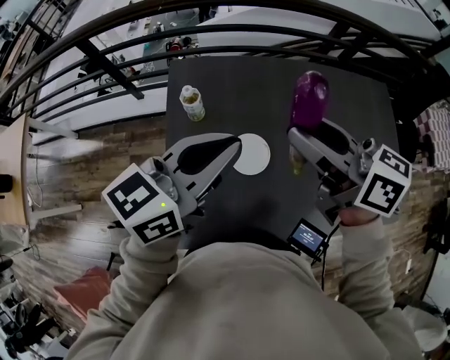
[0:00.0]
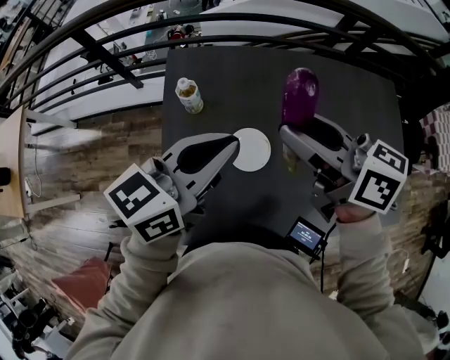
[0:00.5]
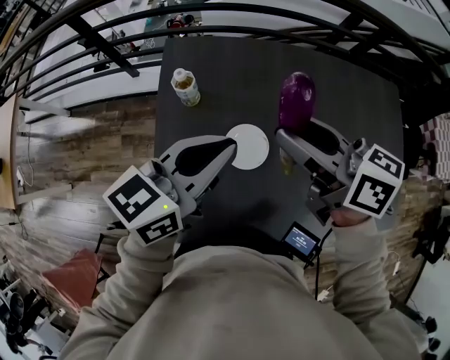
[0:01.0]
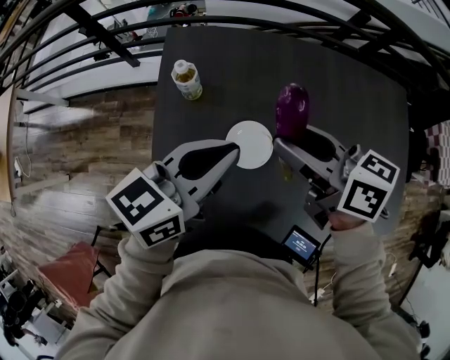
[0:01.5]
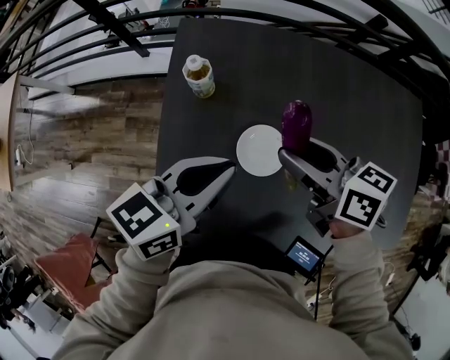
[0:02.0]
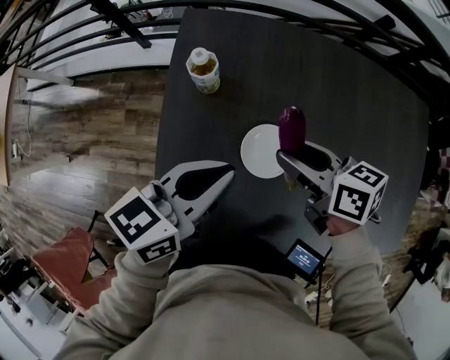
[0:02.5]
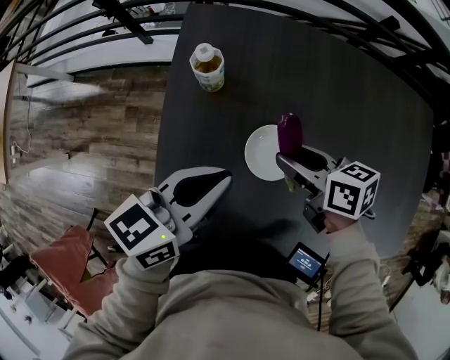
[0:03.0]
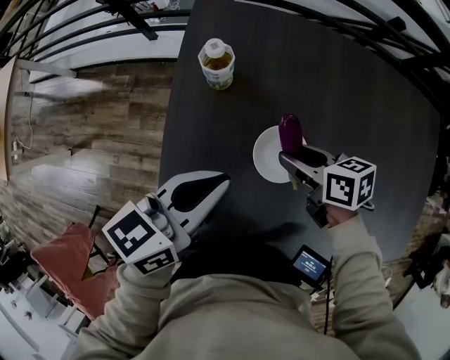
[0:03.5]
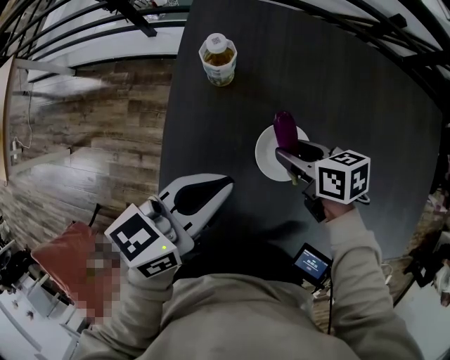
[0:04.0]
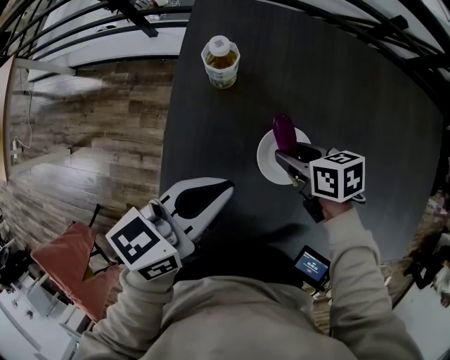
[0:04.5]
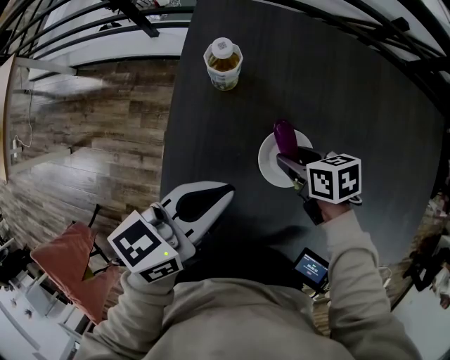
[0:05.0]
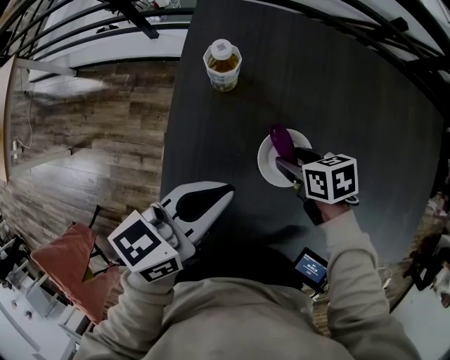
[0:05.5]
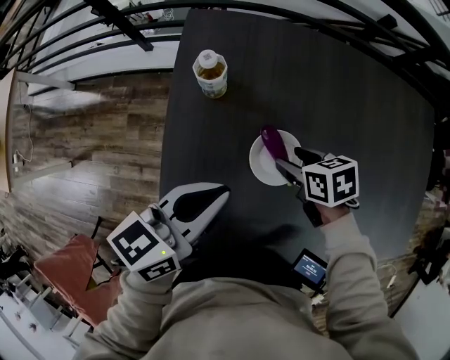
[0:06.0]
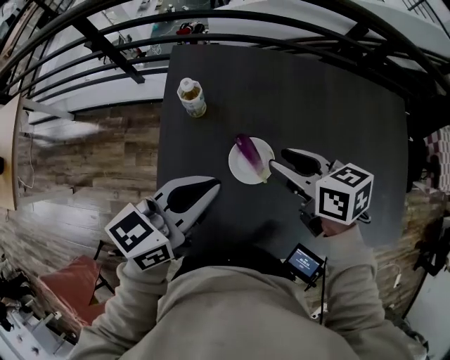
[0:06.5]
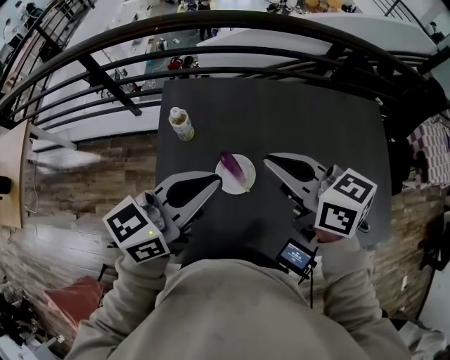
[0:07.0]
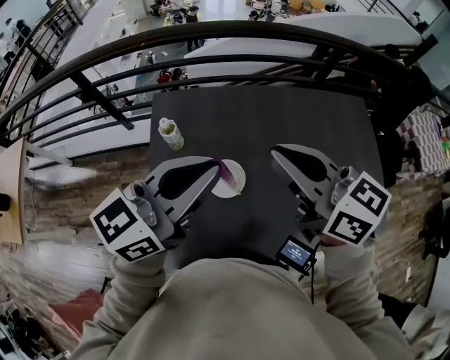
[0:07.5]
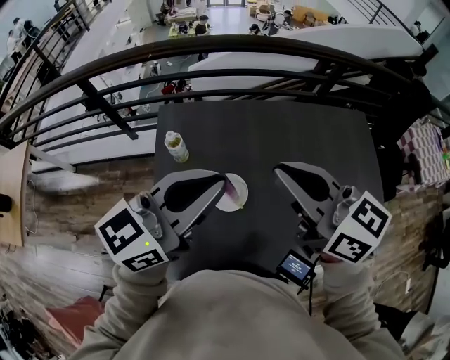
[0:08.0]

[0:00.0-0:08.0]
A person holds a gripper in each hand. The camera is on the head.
0:00.0 to 0:02.0: Both grippers move downward, approximately 20 cm.
0:02.0 to 0:04.0: The right gripper goes about 20 cm downward, and rotates roughly 20 degrees; the left gripper goes approximately 5 cm downward.
0:04.0 to 0:06.0: The grippers make only small movements.
0:06.0 to 0:08.0: The right gripper goes about 40 cm upward, tips its fingers upward by about 50 degrees, and closes; the left gripper moves upward, about 25 cm, and swivels about 30 degrees.

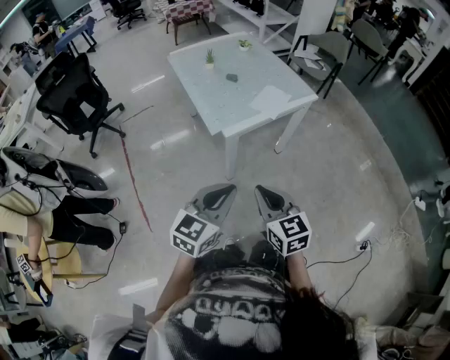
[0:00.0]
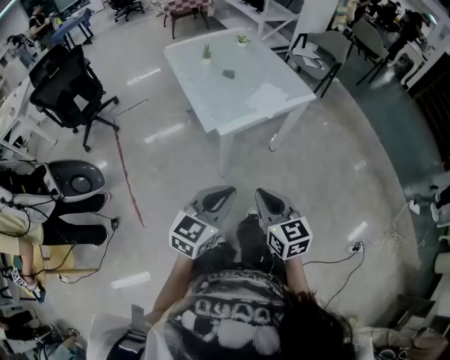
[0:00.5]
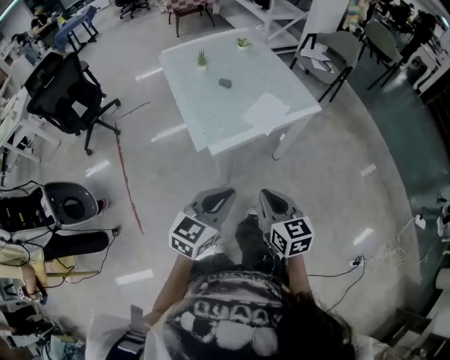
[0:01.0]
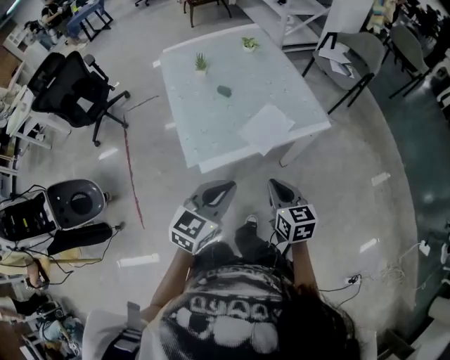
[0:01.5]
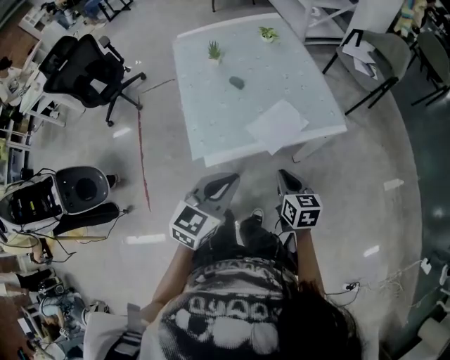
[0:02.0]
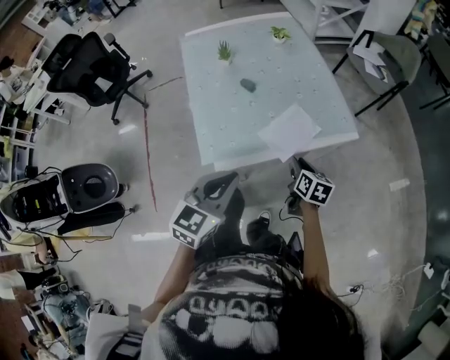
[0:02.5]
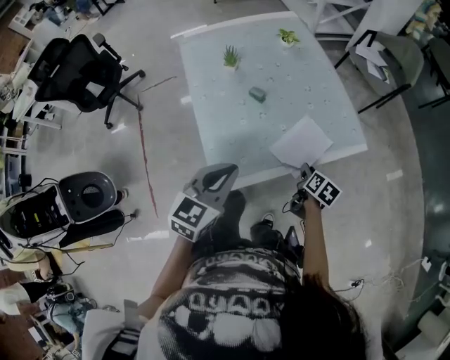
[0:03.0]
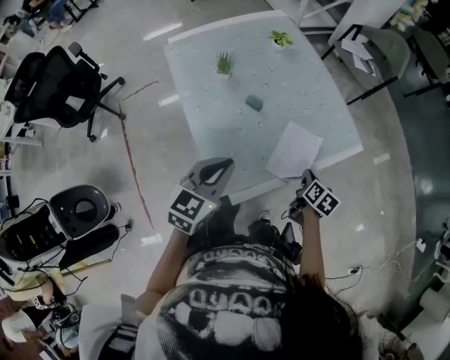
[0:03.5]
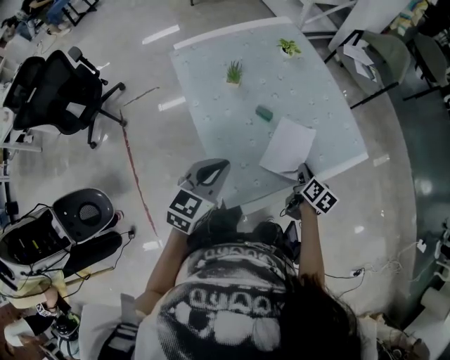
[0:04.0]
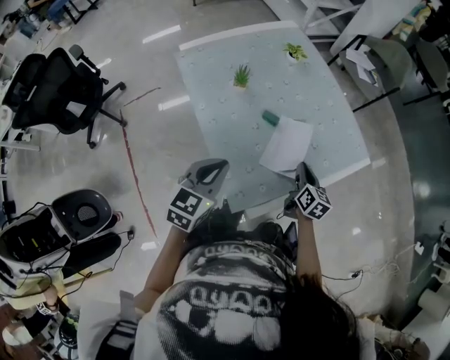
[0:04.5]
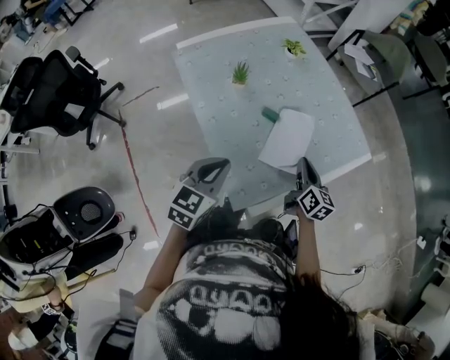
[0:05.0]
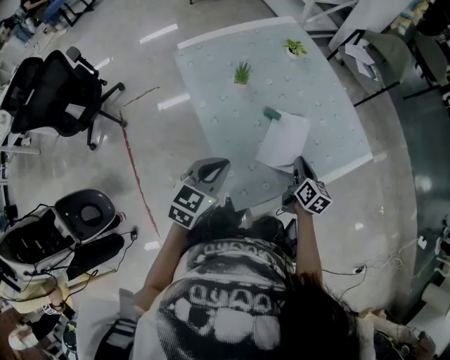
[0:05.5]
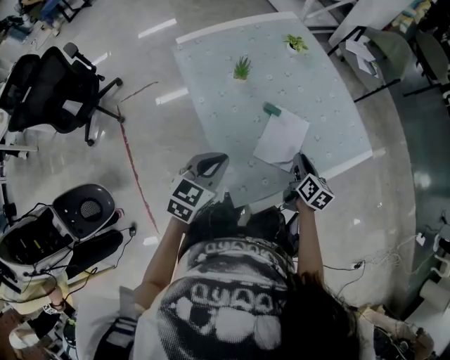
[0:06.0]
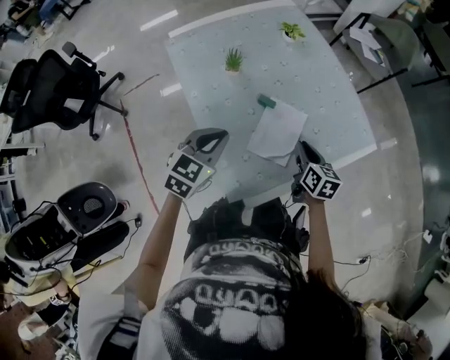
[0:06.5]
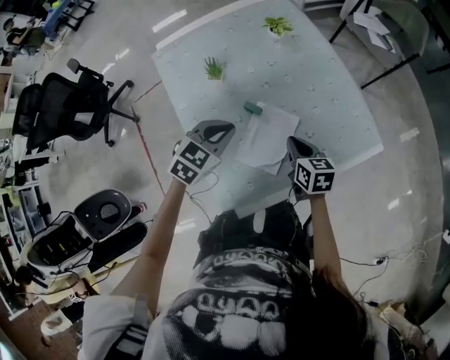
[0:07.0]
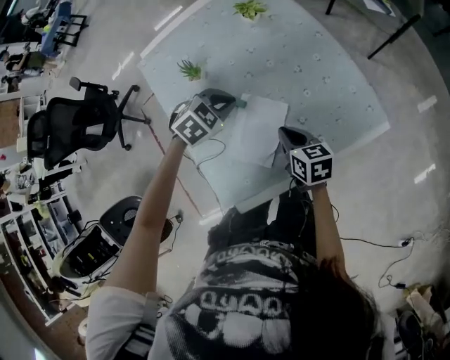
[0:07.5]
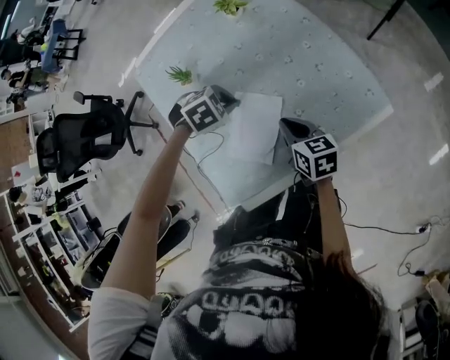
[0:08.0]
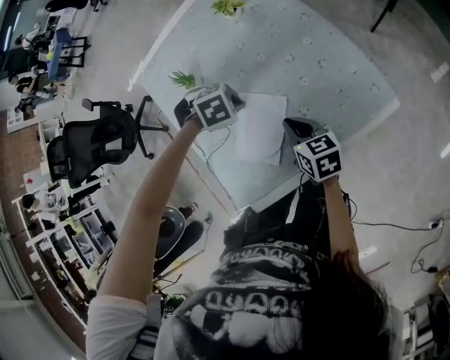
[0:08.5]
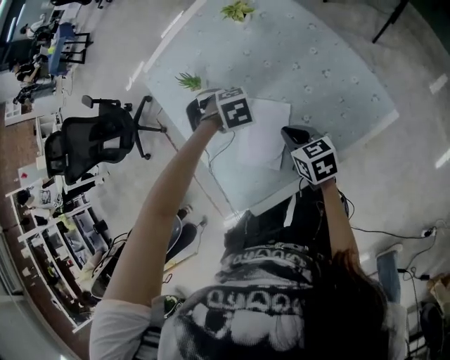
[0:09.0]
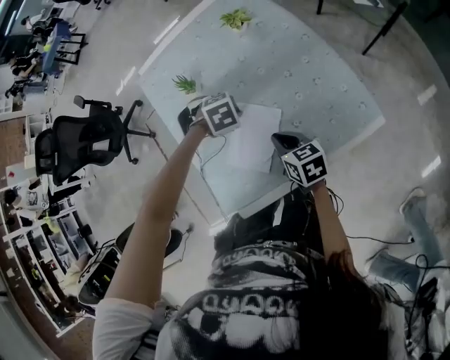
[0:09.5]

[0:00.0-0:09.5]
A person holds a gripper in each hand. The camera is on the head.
0:00.0 to 0:02.0: The left gripper is displaced forward by roughly 30 cm, while the right gripper moves forward, to the right and downward, approximately 40 cm.
0:02.0 to 0:04.0: The right gripper shifts roughly 20 cm forward, to the left and downward, swivels roughly 40 degrees, and opens, then closes again. The left gripper goes roughly 30 cm to the left and forward.
0:04.0 to 0:05.5: The right gripper is displaced to the left by about 5 cm.
0:05.5 to 0:07.5: The right gripper travels forward by approximately 5 cm, and rotates some 30 degrees; the left gripper goes approximately 25 cm forward, to the right and downward, and tips its fingers downward by approximately 40 degrees.
0:07.5 to 0:09.5: The left gripper changes place by roughly 5 cm, and changes its angle by about 30 degrees.

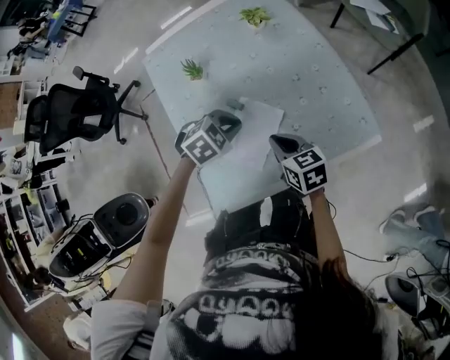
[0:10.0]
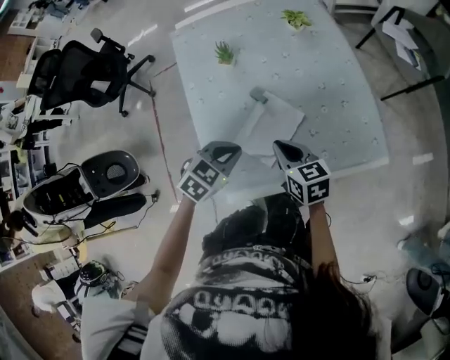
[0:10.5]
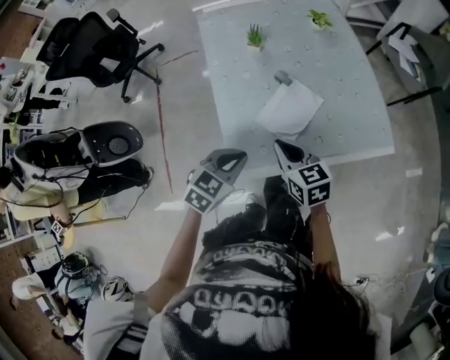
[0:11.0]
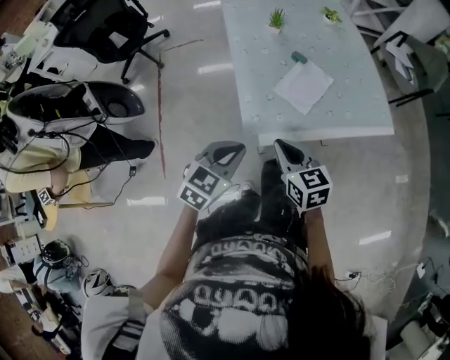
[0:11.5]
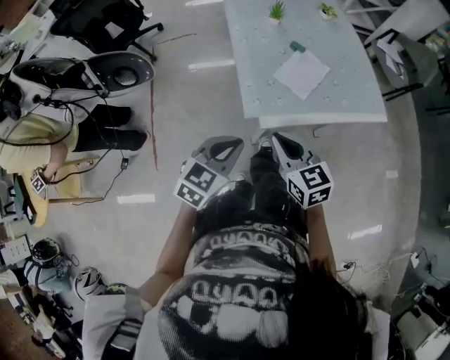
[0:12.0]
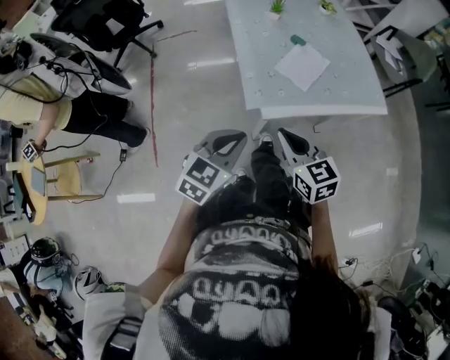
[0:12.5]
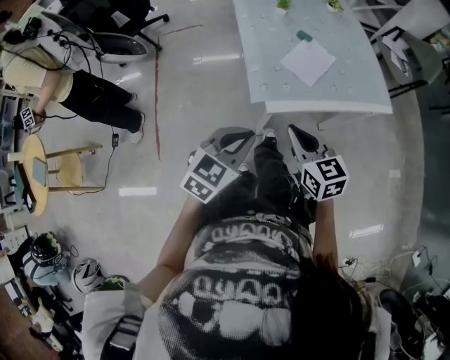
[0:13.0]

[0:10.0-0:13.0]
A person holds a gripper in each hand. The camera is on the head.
0:10.0 to 0:11.5: The grippers both shift backward and to the left by roughly 30 cm. The left gripper points its fingers about 30 degrees further upward.
0:11.5 to 0:13.0: The grippers both shift backward by some 10 cm.

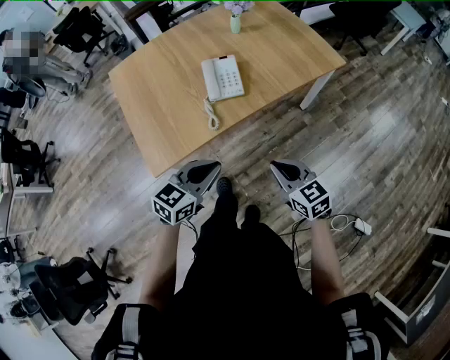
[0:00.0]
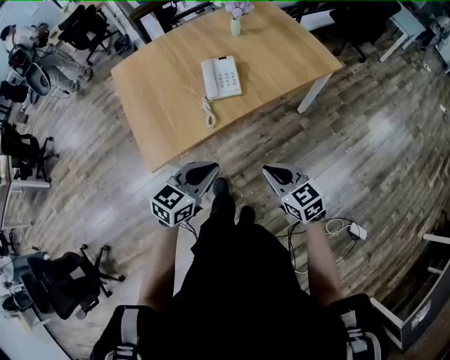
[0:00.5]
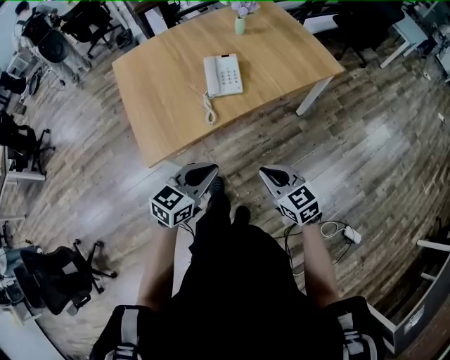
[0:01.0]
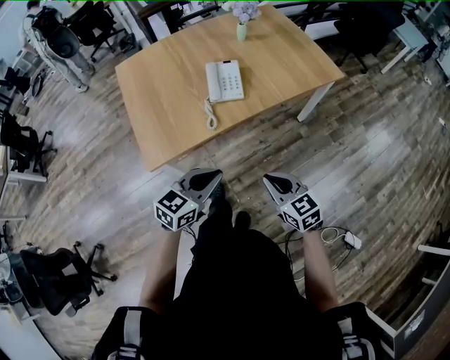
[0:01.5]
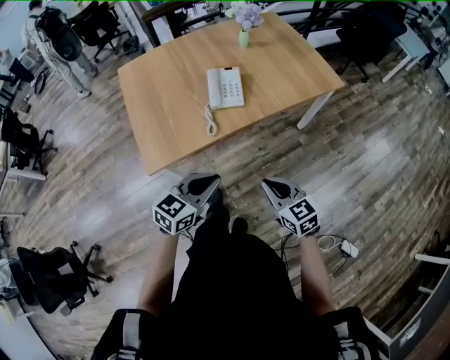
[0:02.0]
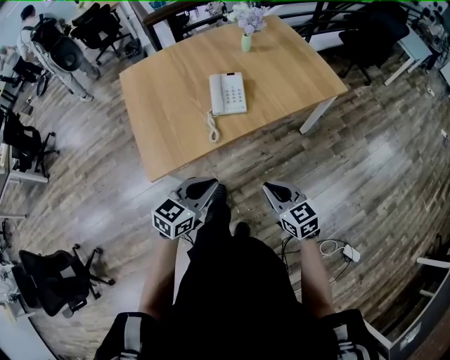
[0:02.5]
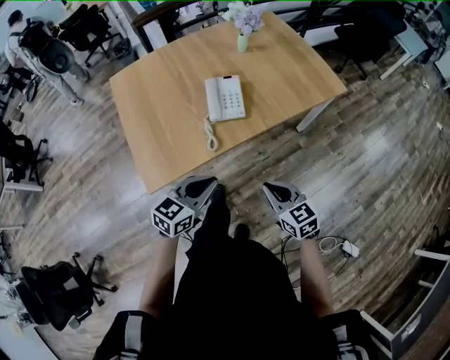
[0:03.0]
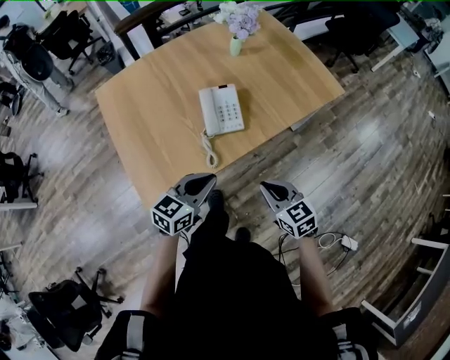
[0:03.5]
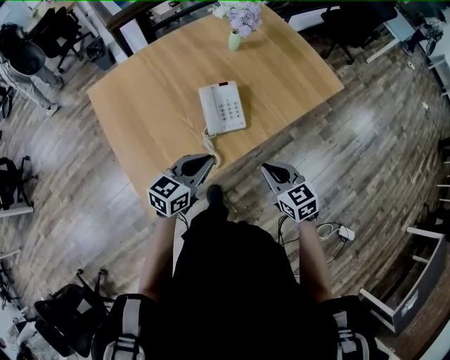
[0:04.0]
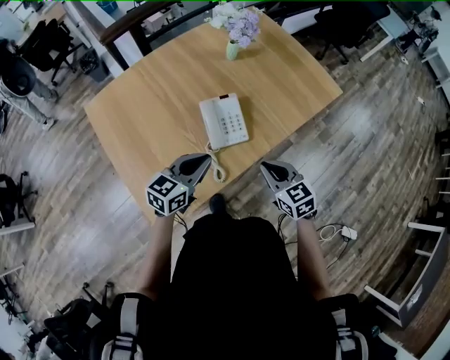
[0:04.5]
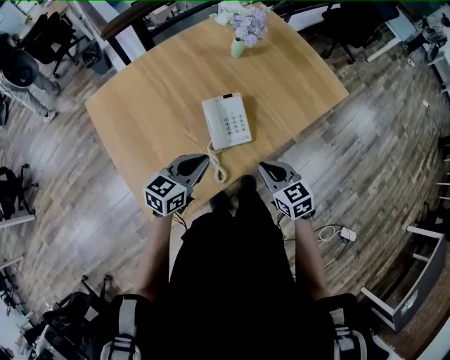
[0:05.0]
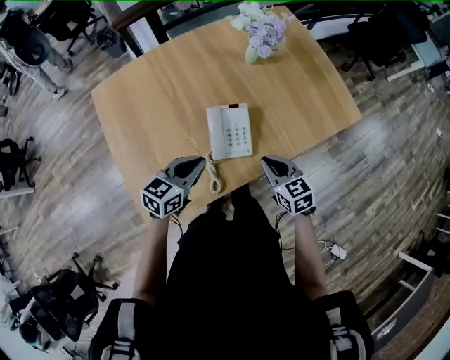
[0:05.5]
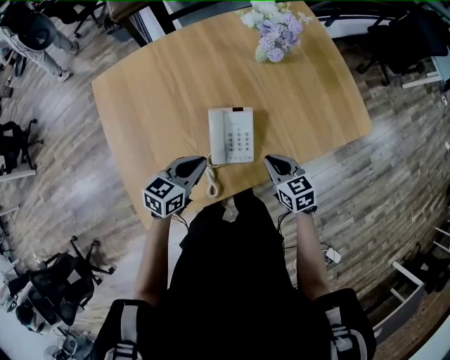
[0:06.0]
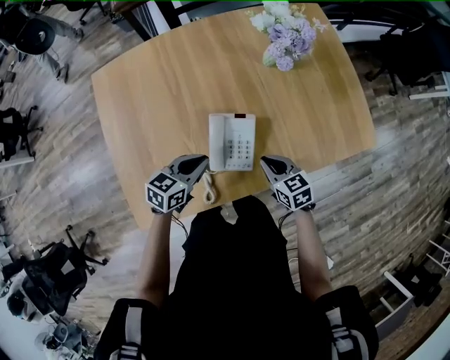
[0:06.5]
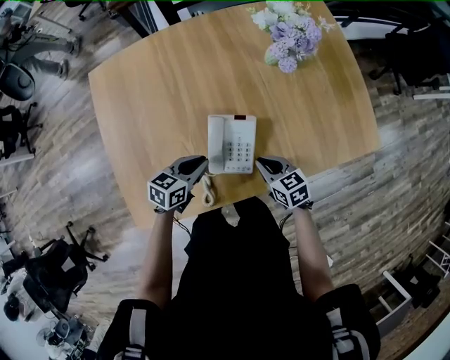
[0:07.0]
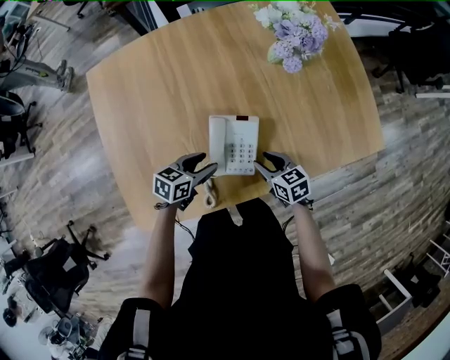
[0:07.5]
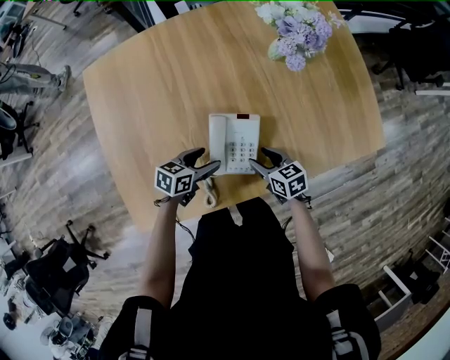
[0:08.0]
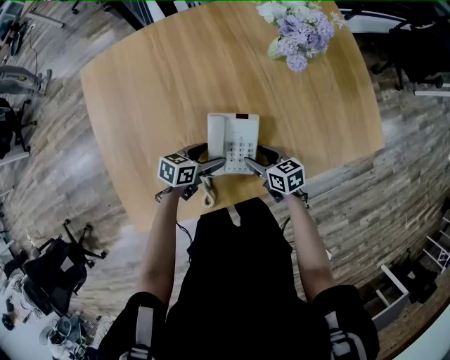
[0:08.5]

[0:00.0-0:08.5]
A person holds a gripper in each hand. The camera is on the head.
0:00.0 to 0:02.0: The grippers move only a little.
0:02.0 to 0:04.0: Both grippers travel together forward, approximately 20 cm.
0:04.0 to 0:06.5: The two grippers go some 25 cm forward and downward. The left gripper changes its angle by some 20 degrees.
0:06.5 to 0:08.5: Both grippers travel together downward, some 10 cm. The left gripper opens; the right gripper opens up.
